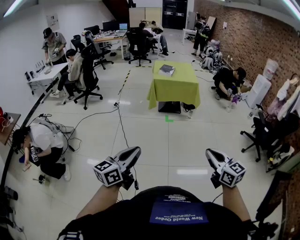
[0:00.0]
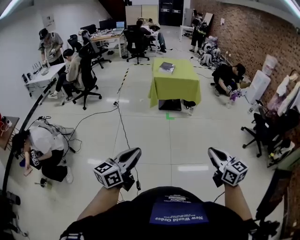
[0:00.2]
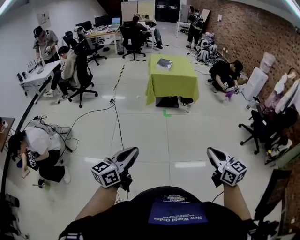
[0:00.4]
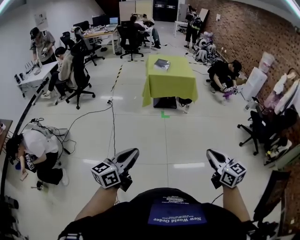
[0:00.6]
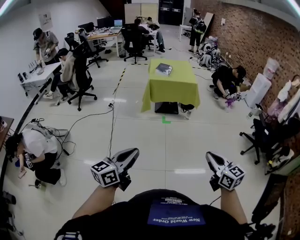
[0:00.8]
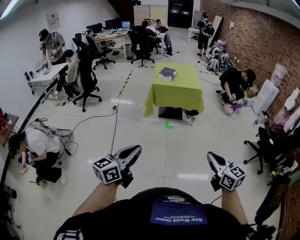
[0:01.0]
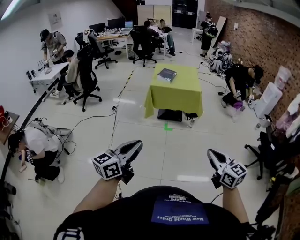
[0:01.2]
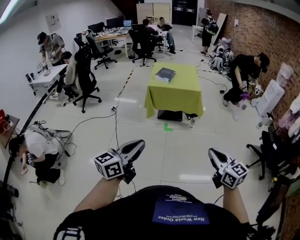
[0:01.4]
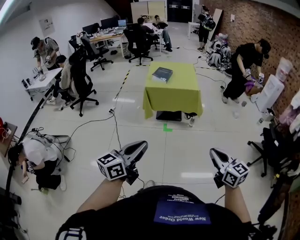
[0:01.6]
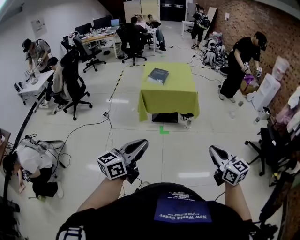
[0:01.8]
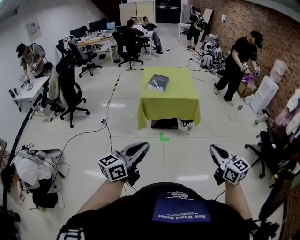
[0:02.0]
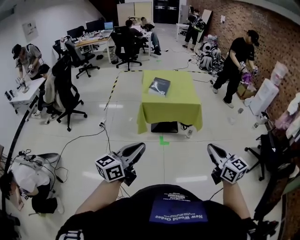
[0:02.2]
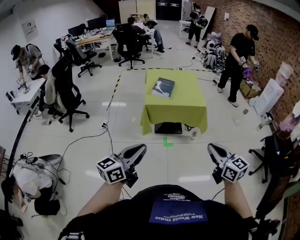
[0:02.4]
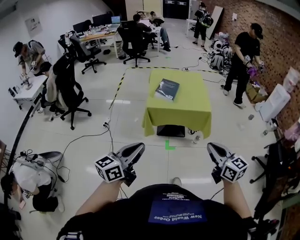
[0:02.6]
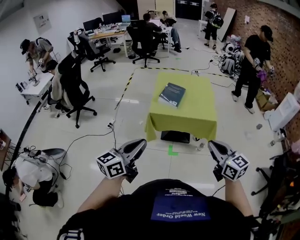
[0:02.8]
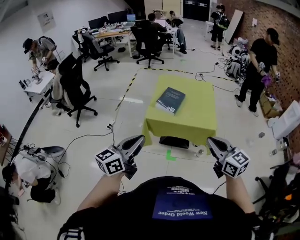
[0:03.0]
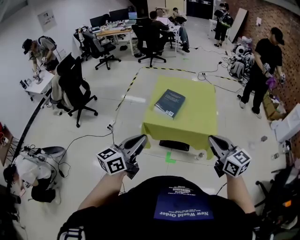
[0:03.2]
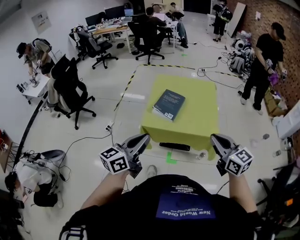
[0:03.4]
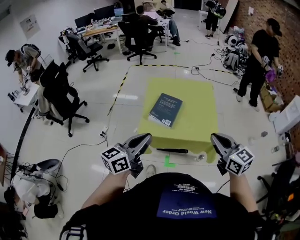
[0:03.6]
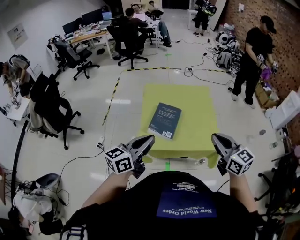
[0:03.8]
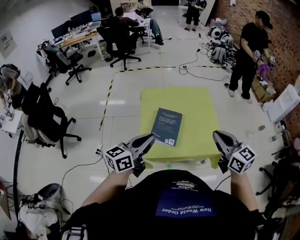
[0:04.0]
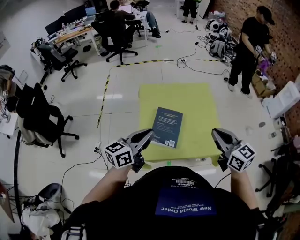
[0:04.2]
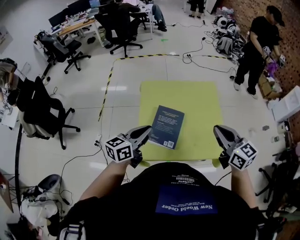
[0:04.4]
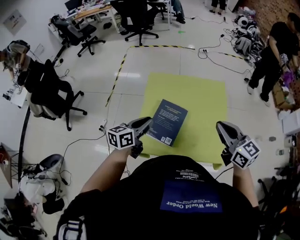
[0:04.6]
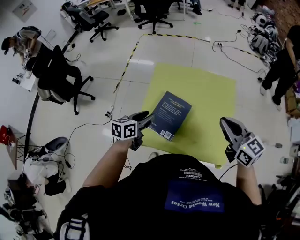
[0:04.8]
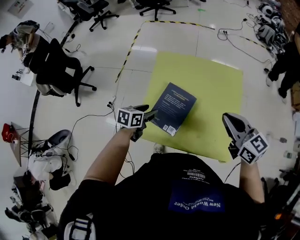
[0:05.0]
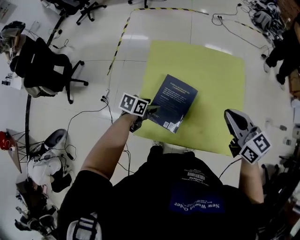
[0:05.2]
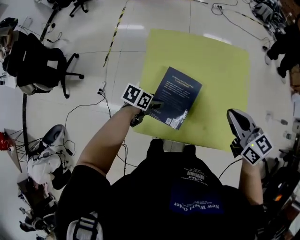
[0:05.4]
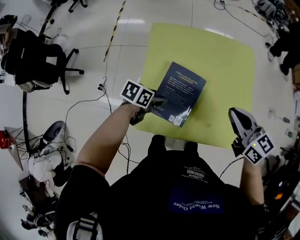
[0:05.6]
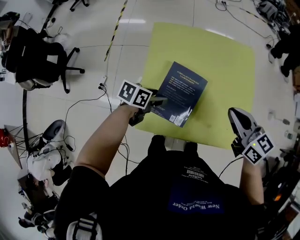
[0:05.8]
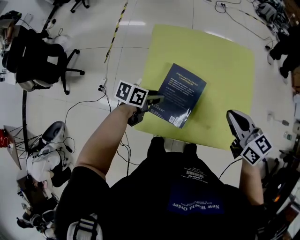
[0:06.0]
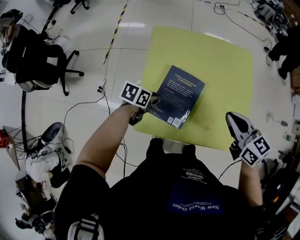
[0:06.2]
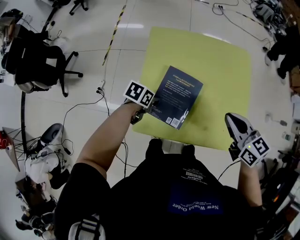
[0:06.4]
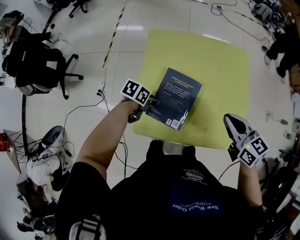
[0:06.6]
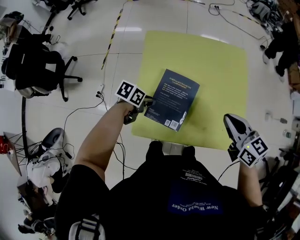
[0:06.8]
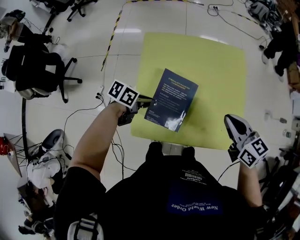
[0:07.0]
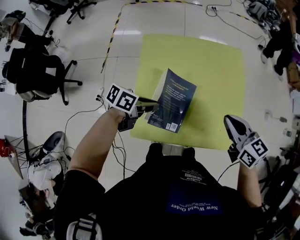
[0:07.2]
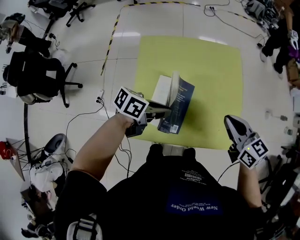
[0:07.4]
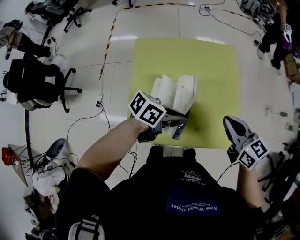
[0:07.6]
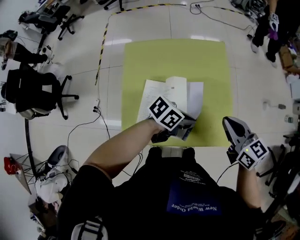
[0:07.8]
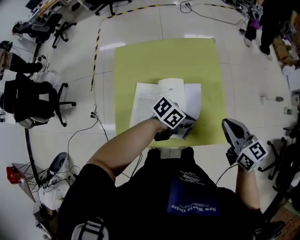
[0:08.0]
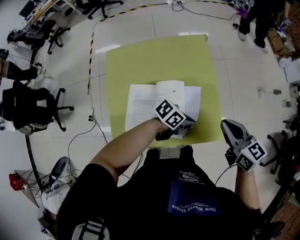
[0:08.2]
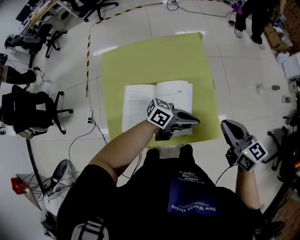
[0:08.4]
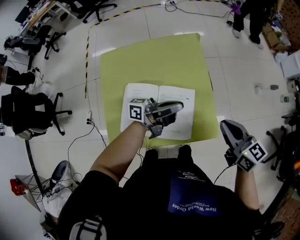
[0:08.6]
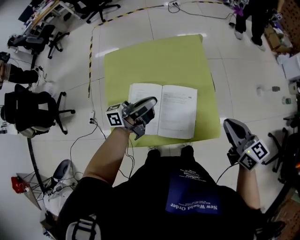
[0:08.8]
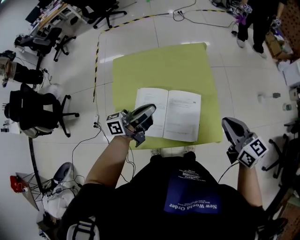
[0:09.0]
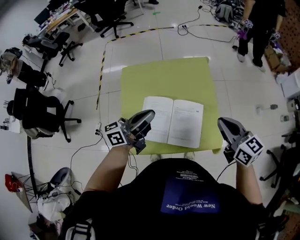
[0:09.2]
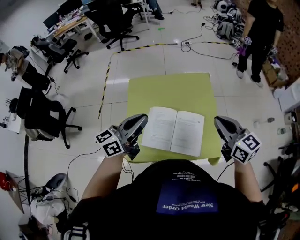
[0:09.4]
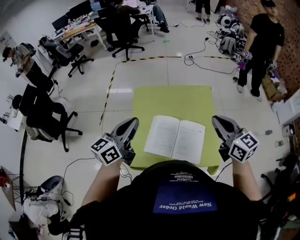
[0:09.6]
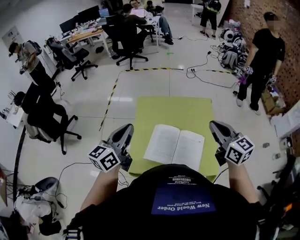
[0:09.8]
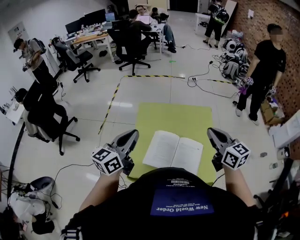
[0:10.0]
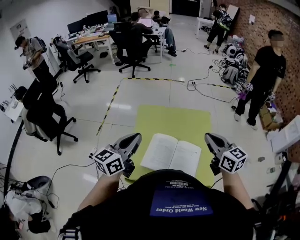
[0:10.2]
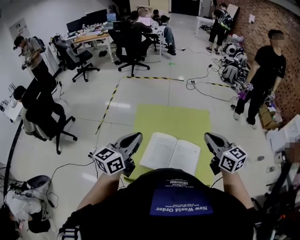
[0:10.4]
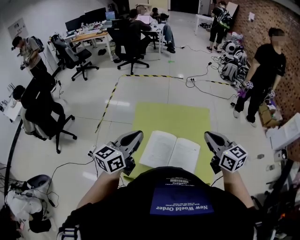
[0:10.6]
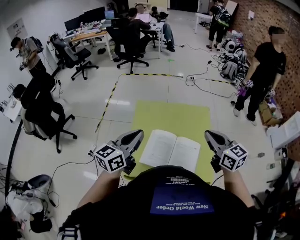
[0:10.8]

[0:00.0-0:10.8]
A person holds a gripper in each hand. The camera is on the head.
0.0 to 1.6 s: The two grippers go about 35 cm forward and to the right.
1.6 to 3.0 s: The pair of grippers is taken forward, approximately 50 cm.
3.0 to 4.6 s: The pair of grippers is taken forward, some 50 cm. The left gripper turns by roughly 20 degrees.
4.6 to 6.2 s: The right gripper travels downward by roughly 15 cm, while the left gripper goes some 25 cm downward, points its fingers about 40 degrees further downward, and opens.
6.2 to 7.8 s: The right gripper moves some 10 cm; the left gripper shifts by about 30 cm, swivels roughly 40 degrees, and closes up.
7.8 to 9.2 s: The right gripper moves upward, roughly 5 cm, while the left gripper travels upward by some 15 cm, and points its fingers approximately 40 degrees further upward.
9.2 to 10.8 s: The left gripper shifts some 15 cm to the left and upward, and turns by some 40 degrees, while the right gripper heads upward and to the left, covering some 15 cm.

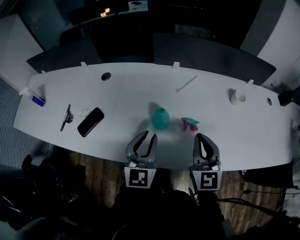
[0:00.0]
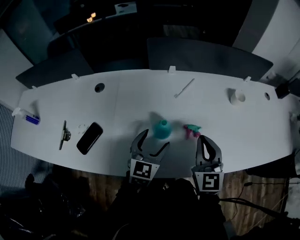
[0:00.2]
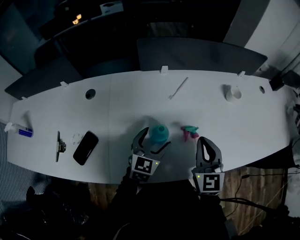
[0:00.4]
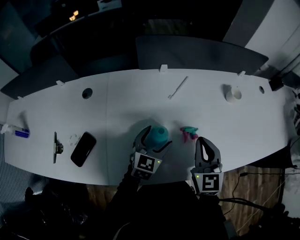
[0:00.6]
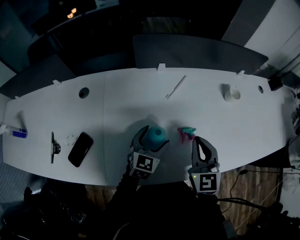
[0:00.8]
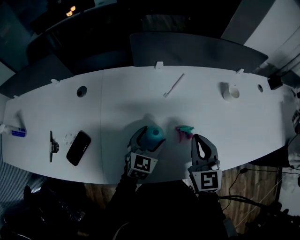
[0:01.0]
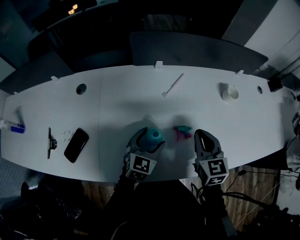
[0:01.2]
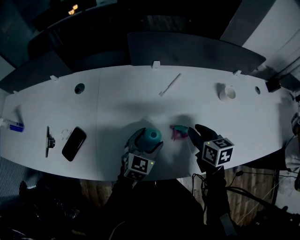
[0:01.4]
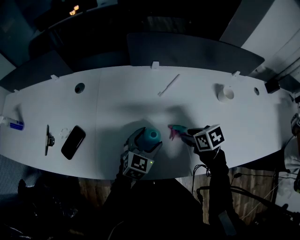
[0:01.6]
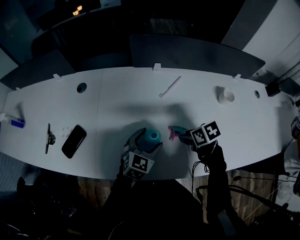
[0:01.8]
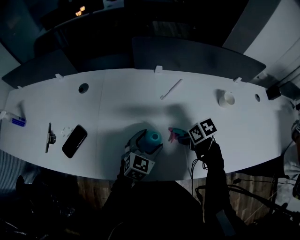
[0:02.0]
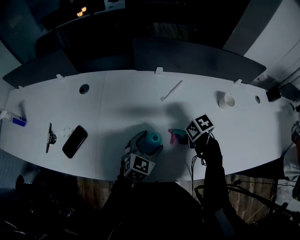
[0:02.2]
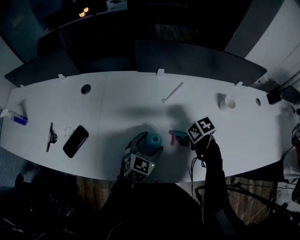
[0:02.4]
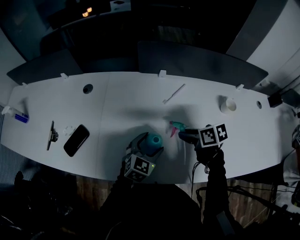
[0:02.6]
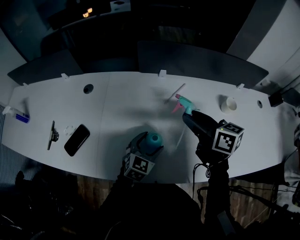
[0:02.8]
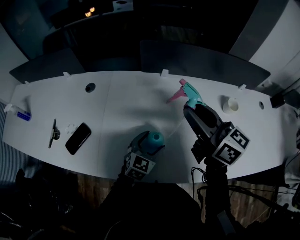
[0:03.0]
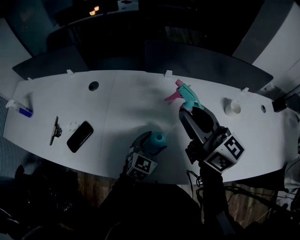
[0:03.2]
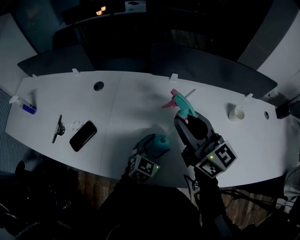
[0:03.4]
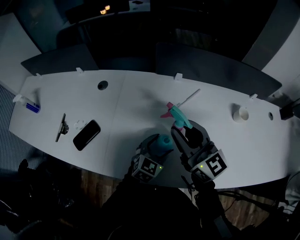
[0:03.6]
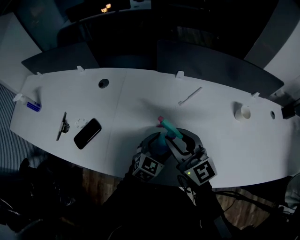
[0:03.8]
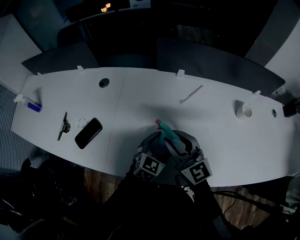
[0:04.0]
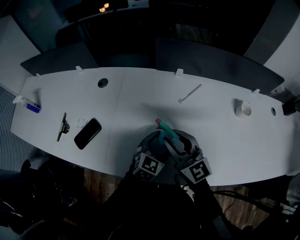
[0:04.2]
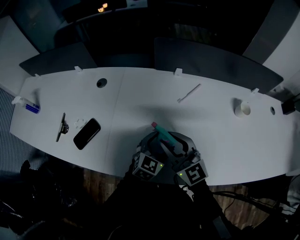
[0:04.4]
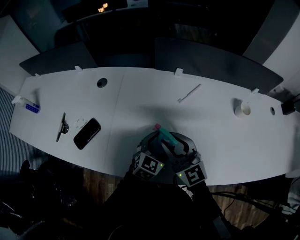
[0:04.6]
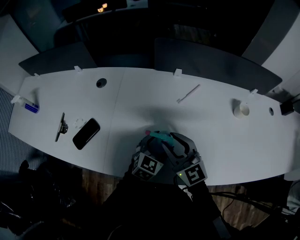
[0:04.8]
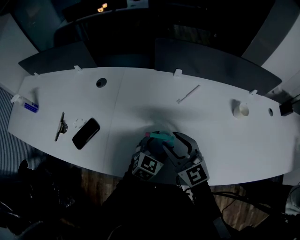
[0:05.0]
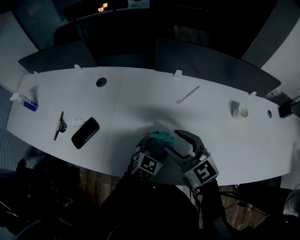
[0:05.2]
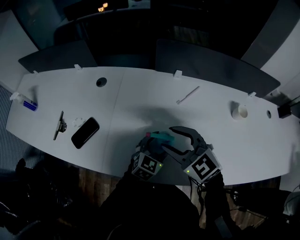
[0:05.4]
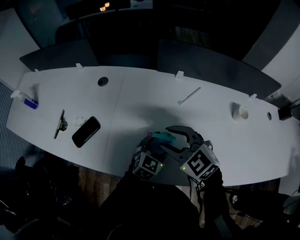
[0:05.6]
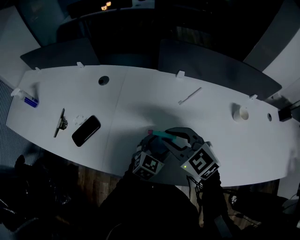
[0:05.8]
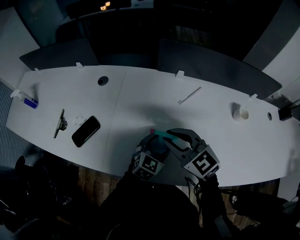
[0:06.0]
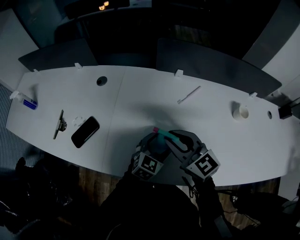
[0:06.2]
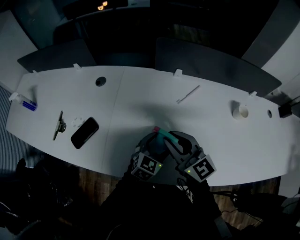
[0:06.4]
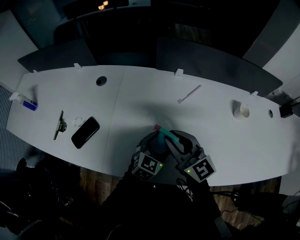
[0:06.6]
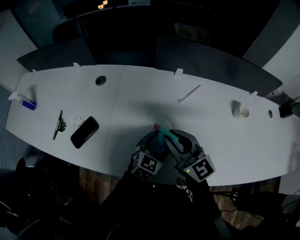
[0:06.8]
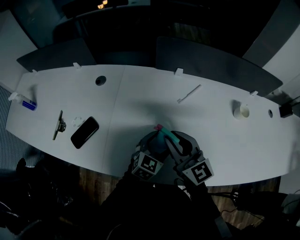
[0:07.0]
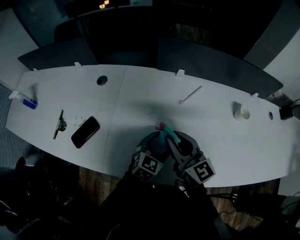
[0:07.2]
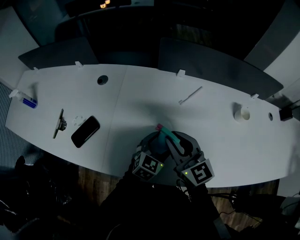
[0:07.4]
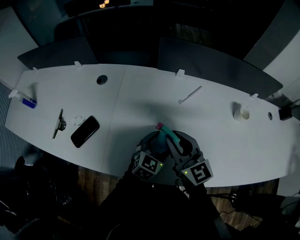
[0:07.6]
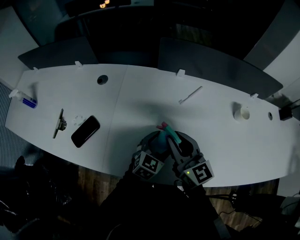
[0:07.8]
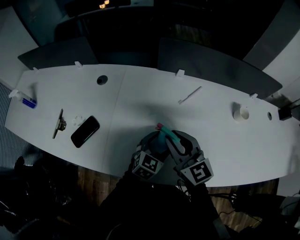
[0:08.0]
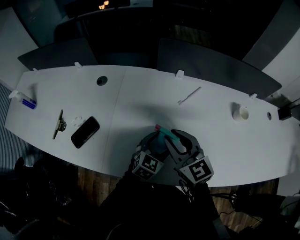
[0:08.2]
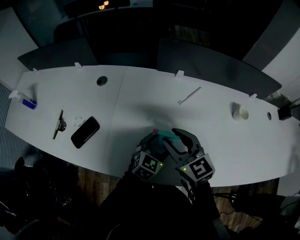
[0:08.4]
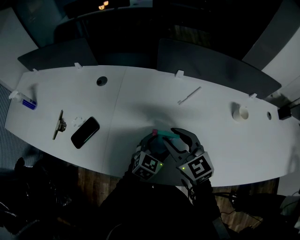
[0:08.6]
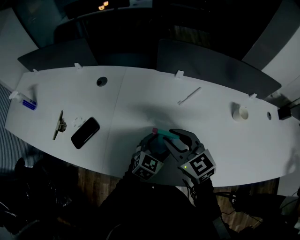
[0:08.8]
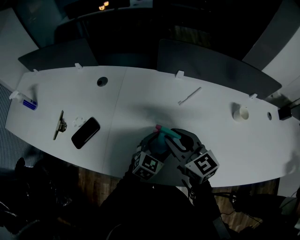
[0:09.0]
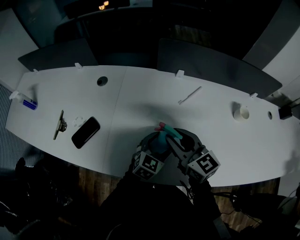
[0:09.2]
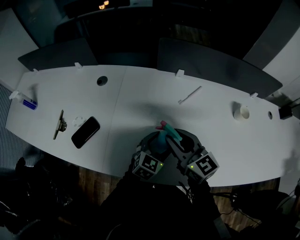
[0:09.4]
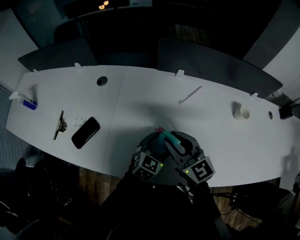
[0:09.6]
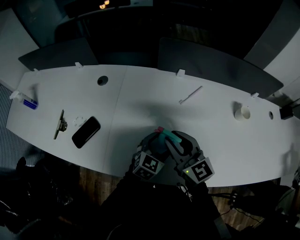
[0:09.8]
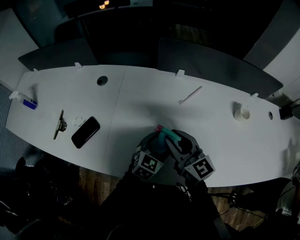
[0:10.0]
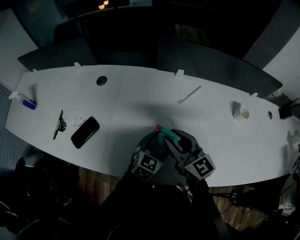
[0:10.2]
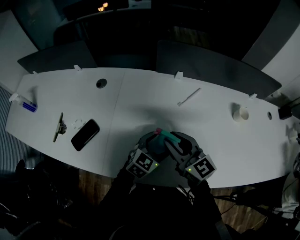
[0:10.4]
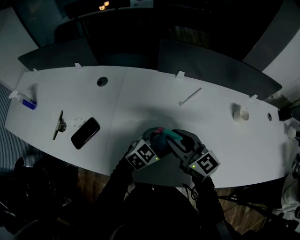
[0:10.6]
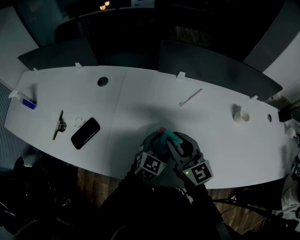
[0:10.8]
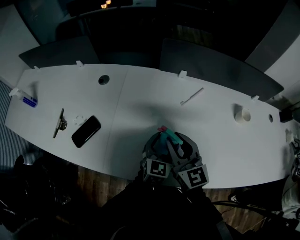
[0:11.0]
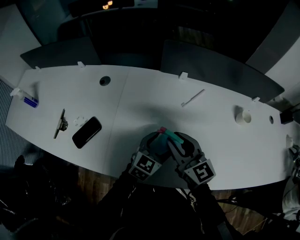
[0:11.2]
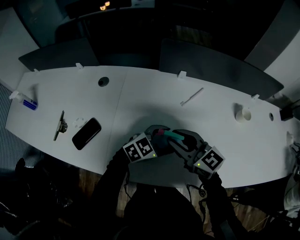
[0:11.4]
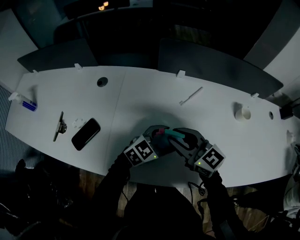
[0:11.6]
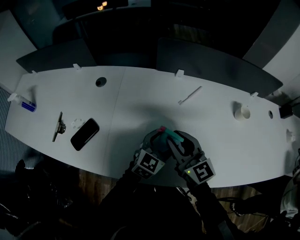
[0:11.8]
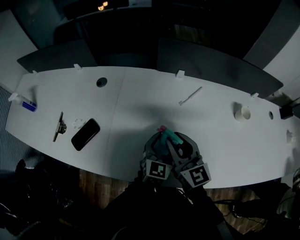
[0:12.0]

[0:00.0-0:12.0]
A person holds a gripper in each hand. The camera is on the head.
0.0 to 1.6 s: The two grippers go some 15 cm downward. The right gripper tilts its fingers approximately 50 degrees downward, and opens; the left gripper turns by approximately 30 degrees, and opens up.
1.6 to 3.0 s: The right gripper heads upward, covering approximately 25 cm, and angles its fingers upward, by about 60 degrees.
3.0 to 4.4 s: The right gripper shifts some 15 cm downward and to the left, and turns by roughly 30 degrees.
4.4 to 6.0 s: The right gripper swivels roughly 20 degrees.
6.0 to 7.6 s: The right gripper changes its angle by approximately 30 degrees.
9.0 to 10.4 s: The grippers move only a little.
10.4 to 12.0 s: The left gripper rotates roughly 20 degrees.

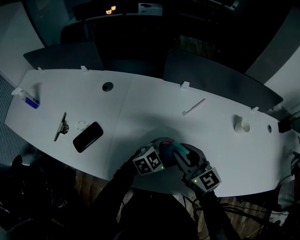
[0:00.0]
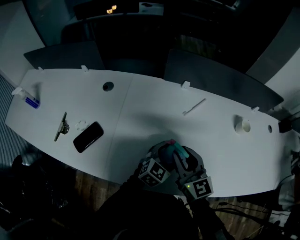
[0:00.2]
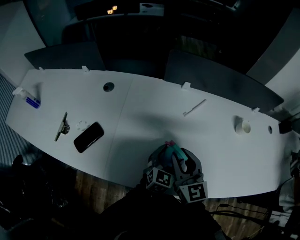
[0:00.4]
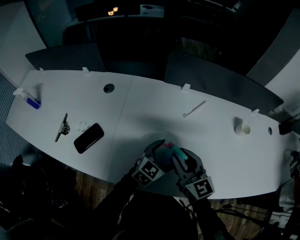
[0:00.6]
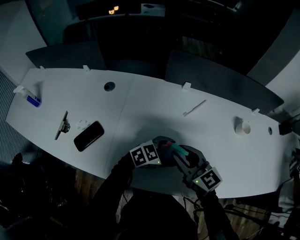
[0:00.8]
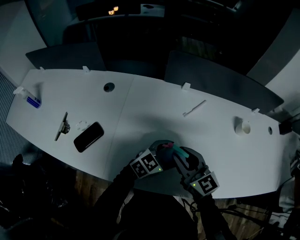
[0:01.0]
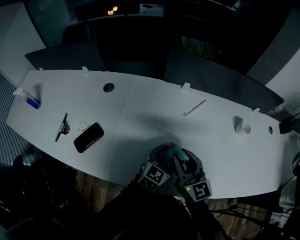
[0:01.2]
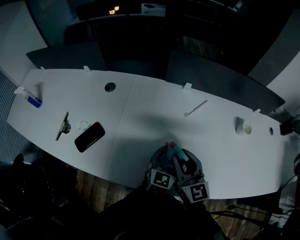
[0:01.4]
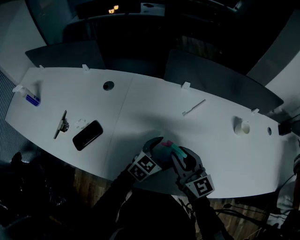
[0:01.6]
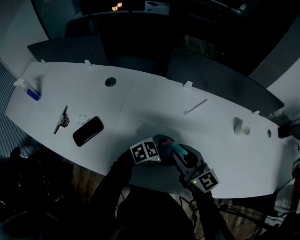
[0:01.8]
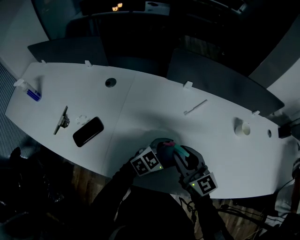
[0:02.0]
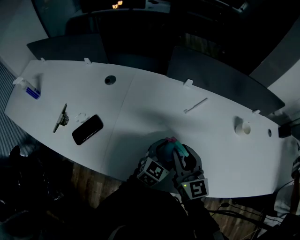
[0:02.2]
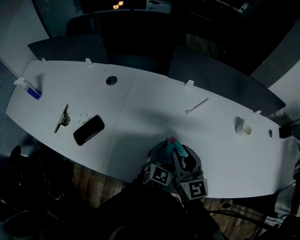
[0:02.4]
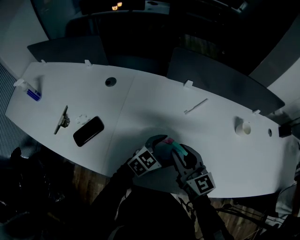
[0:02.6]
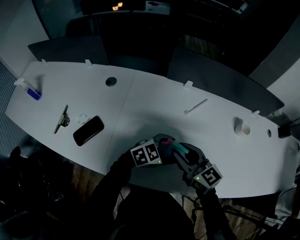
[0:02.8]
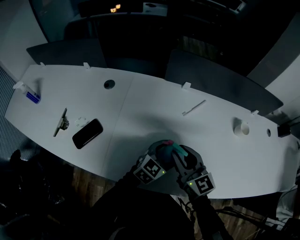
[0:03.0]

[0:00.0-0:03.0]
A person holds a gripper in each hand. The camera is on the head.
0.0 to 1.6 s: The left gripper swivels some 20 degrees.
